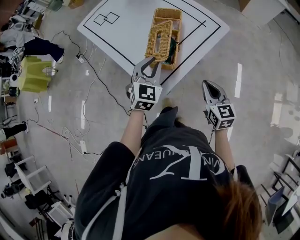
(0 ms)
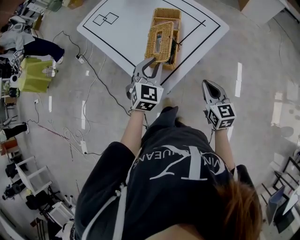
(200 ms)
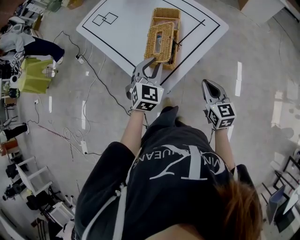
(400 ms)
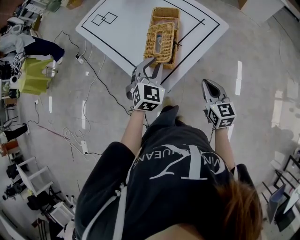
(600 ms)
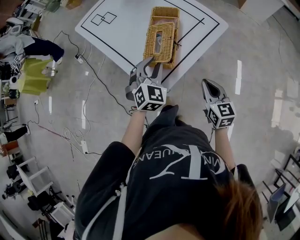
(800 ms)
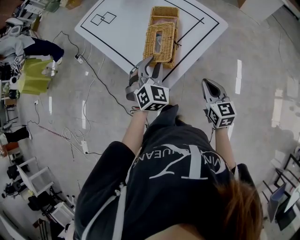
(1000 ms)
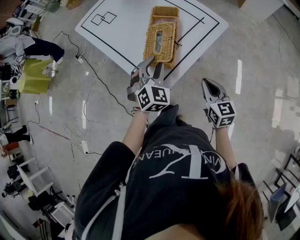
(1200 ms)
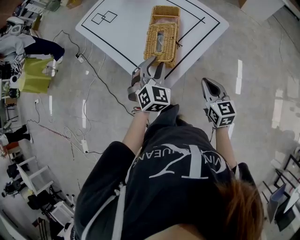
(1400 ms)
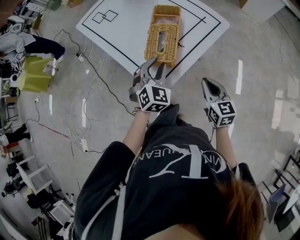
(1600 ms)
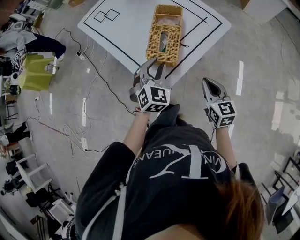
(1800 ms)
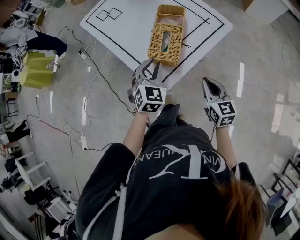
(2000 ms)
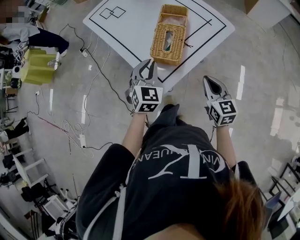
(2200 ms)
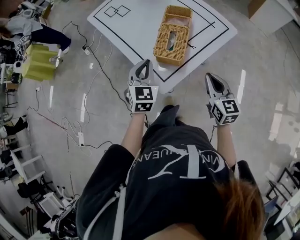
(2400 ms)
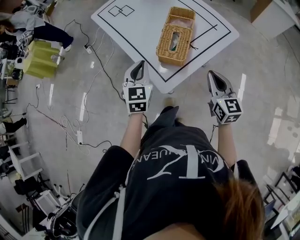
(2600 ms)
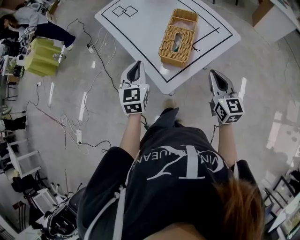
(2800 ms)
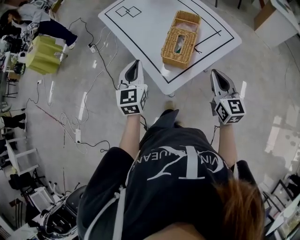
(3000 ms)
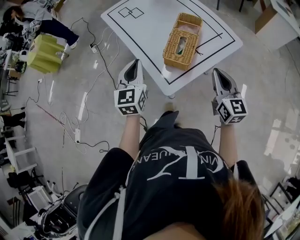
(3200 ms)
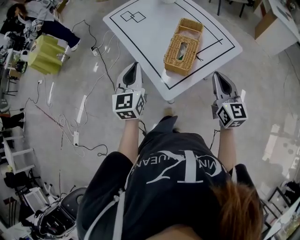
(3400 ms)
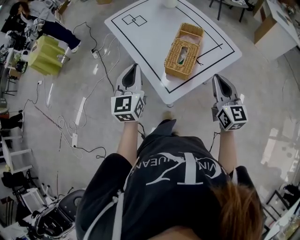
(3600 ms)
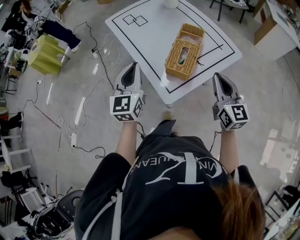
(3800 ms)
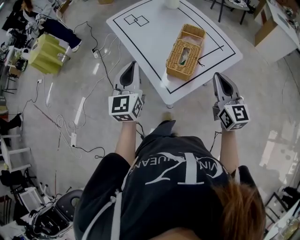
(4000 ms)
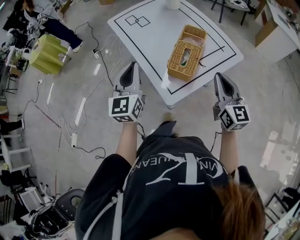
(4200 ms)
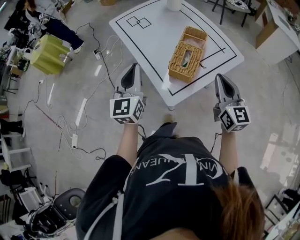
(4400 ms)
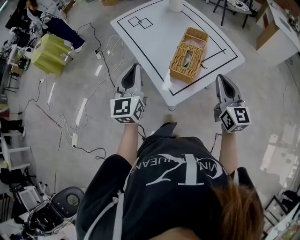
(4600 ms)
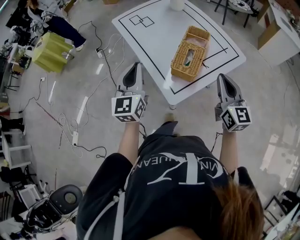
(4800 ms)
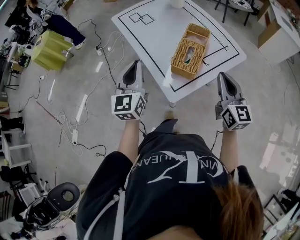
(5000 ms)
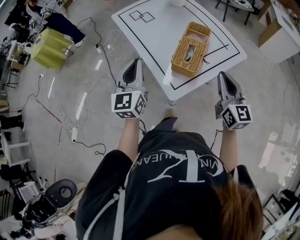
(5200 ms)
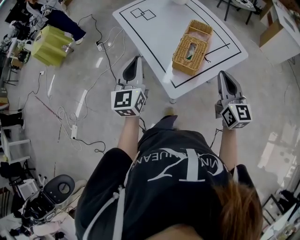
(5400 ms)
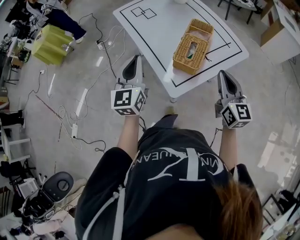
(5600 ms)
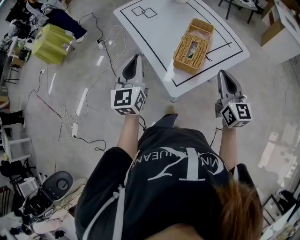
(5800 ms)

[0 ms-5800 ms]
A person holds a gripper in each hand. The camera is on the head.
0 ms to 1400 ms: There are only small adjustments of the grippers.
1400 ms to 2800 ms: The right gripper heads upward, covering some 5 cm. The left gripper shifts roughly 15 cm to the left, rotates about 40 degrees, and closes up.
2800 ms to 4400 ms: Both grippers move upward, roughly 10 cm.
4400 ms to 5800 ms: There are only small adjustments of the grippers.

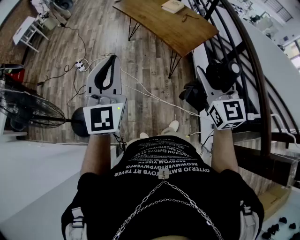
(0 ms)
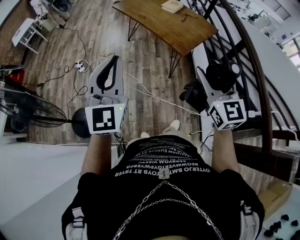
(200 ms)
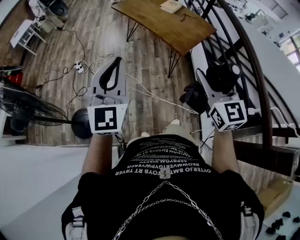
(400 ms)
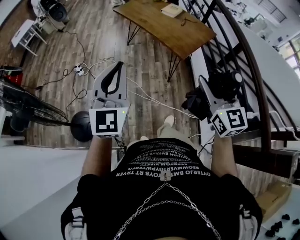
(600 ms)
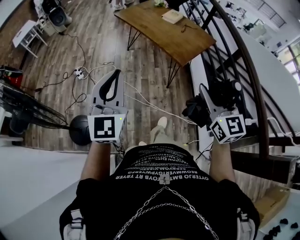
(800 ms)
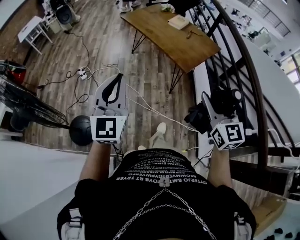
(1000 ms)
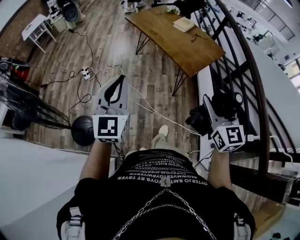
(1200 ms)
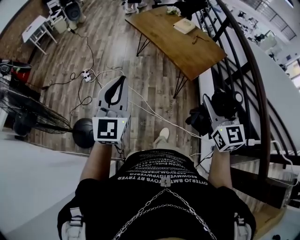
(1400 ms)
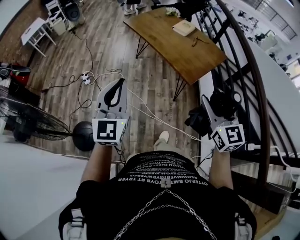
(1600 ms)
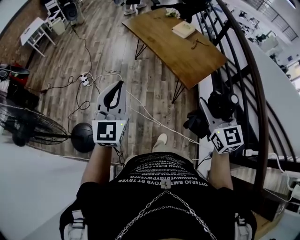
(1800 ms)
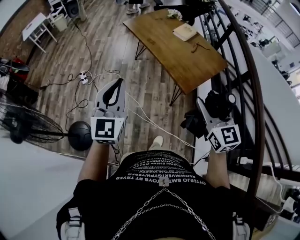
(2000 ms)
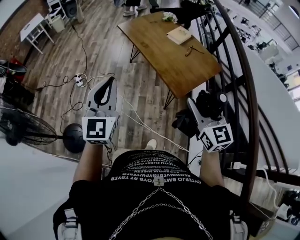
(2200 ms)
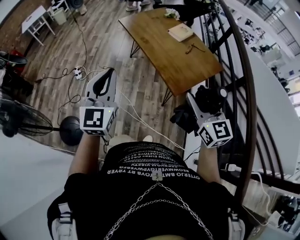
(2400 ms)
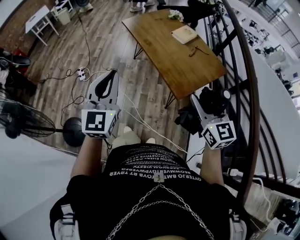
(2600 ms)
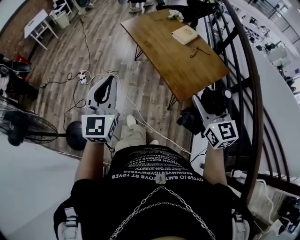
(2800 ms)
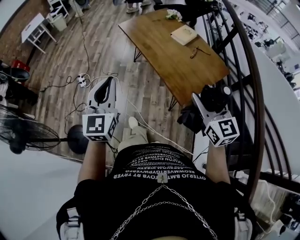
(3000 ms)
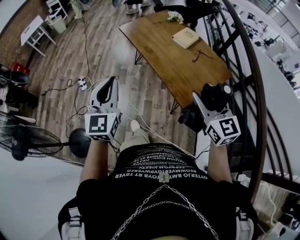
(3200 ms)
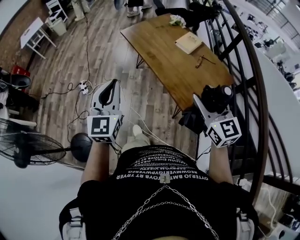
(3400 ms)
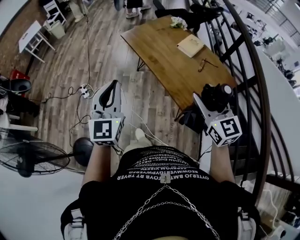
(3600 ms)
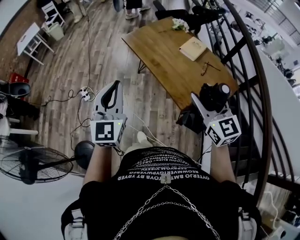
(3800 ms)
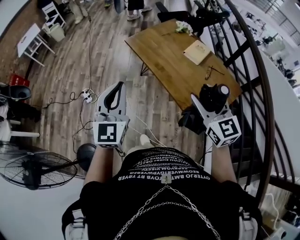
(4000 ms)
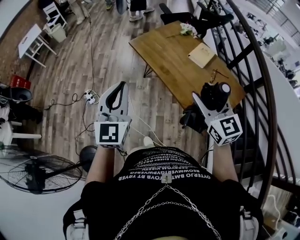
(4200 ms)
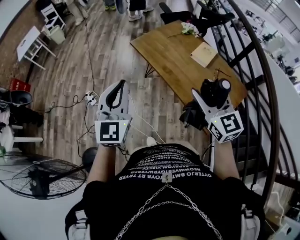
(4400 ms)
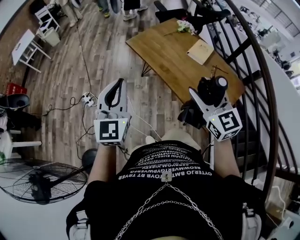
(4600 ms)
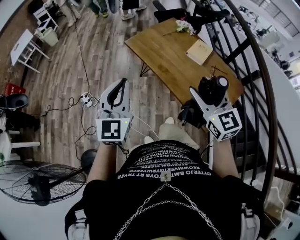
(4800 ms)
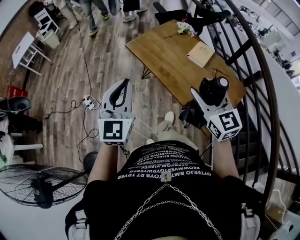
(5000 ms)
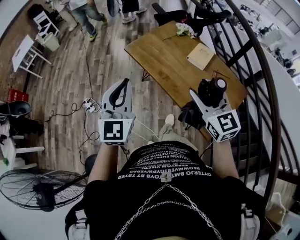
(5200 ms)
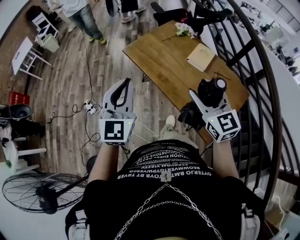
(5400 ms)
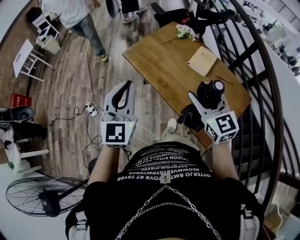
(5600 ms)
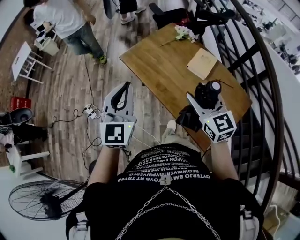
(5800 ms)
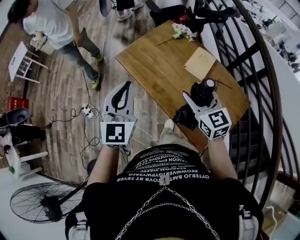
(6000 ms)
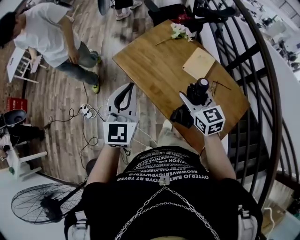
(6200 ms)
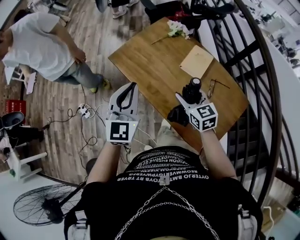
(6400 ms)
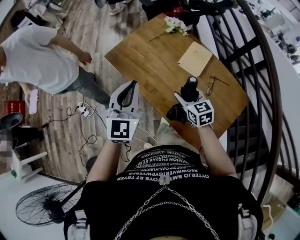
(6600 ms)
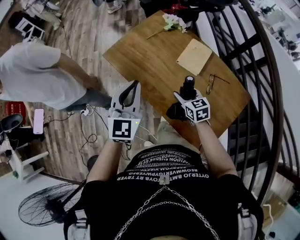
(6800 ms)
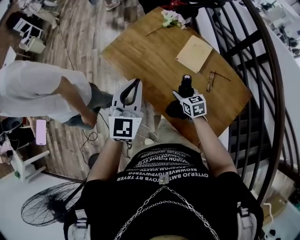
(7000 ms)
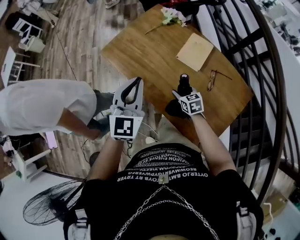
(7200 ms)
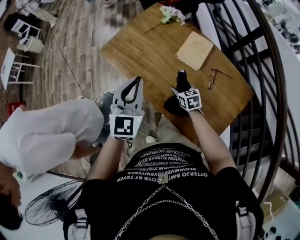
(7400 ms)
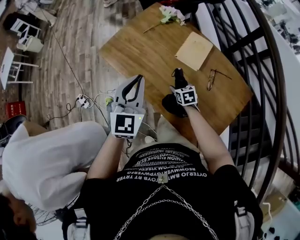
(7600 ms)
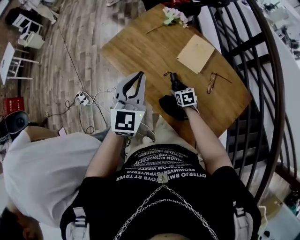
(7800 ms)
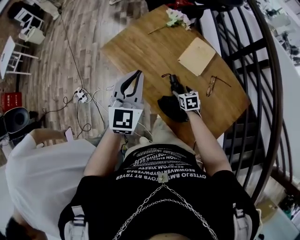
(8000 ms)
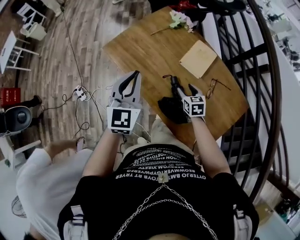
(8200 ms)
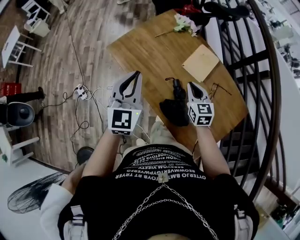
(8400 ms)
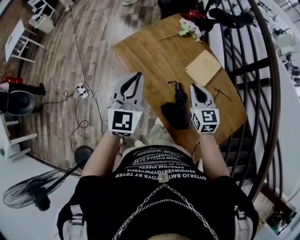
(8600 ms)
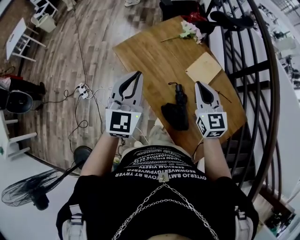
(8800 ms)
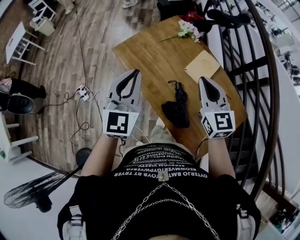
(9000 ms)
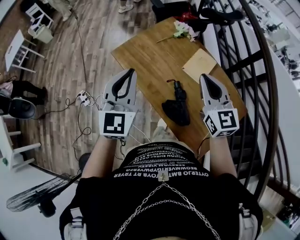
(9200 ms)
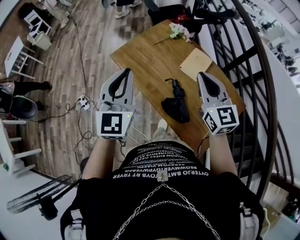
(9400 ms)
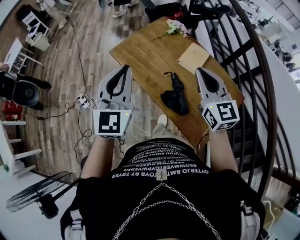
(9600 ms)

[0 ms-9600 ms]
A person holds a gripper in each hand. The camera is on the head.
0 ms to 1600 ms: The right gripper is displaced forward by some 5 cm, while the left gripper is displaced forward and downward by about 10 cm.
1600 ms to 3200 ms: The grippers both shift forward by about 20 cm.
3200 ms to 4800 ms: The right gripper goes some 25 cm forward and to the left. The left gripper moves forward, roughly 20 cm.
4800 ms to 6400 ms: The left gripper moves forward and to the right, about 25 cm. The right gripper shifts roughly 30 cm forward, downward and to the right, and swivels approximately 20 degrees.
6400 ms to 8000 ms: The right gripper heads downward, covering approximately 25 cm, and changes its angle by roughly 30 degrees; the left gripper is displaced forward by roughly 5 cm.
8000 ms to 9600 ms: The right gripper moves upward, about 40 cm, points its fingers some 50 degrees further upward, and closes its fingers; the left gripper moves upward, backward and to the left, roughly 15 cm.

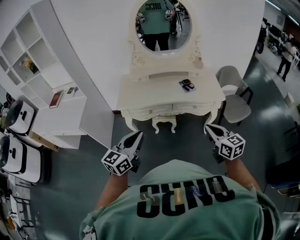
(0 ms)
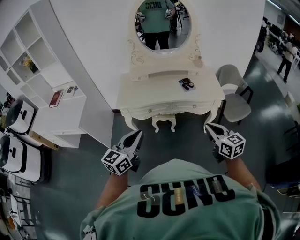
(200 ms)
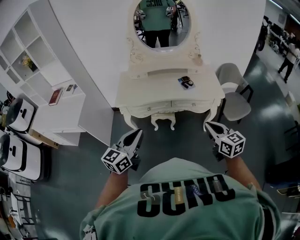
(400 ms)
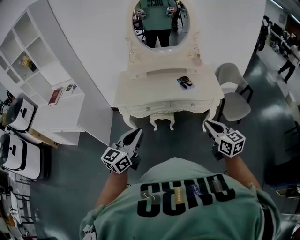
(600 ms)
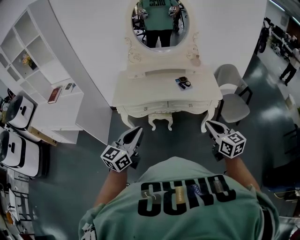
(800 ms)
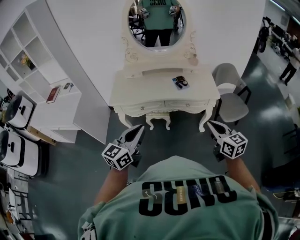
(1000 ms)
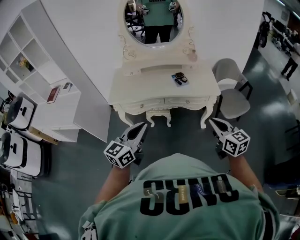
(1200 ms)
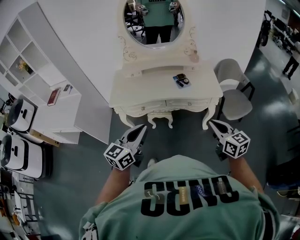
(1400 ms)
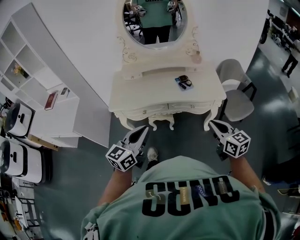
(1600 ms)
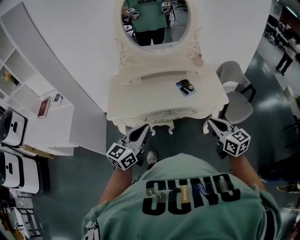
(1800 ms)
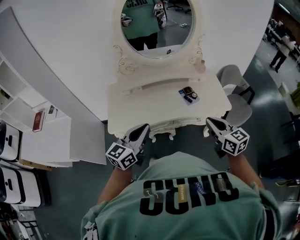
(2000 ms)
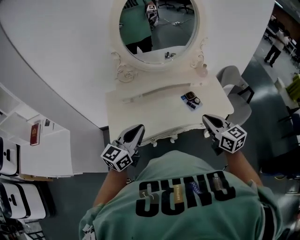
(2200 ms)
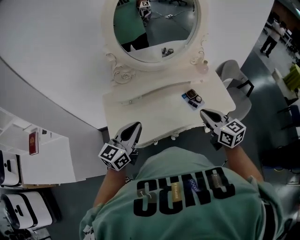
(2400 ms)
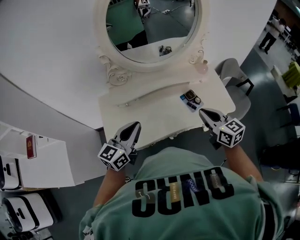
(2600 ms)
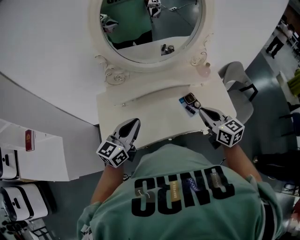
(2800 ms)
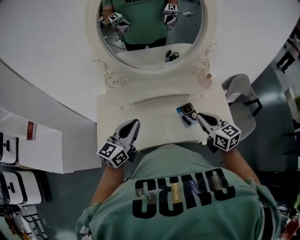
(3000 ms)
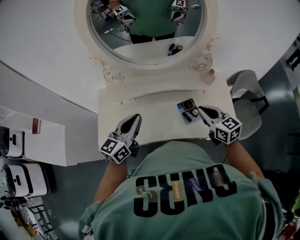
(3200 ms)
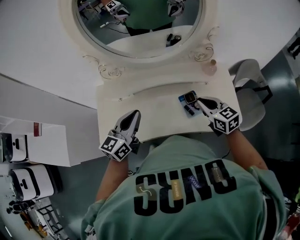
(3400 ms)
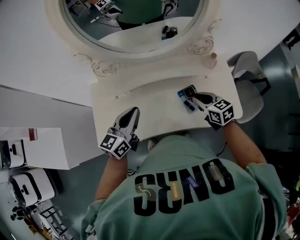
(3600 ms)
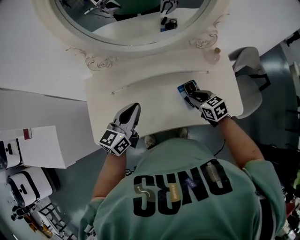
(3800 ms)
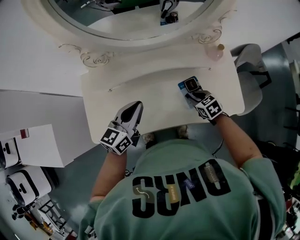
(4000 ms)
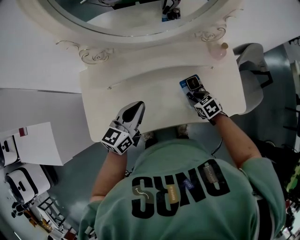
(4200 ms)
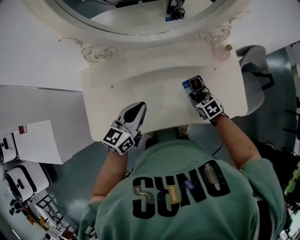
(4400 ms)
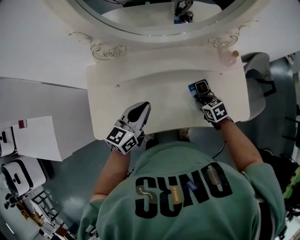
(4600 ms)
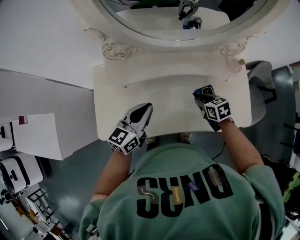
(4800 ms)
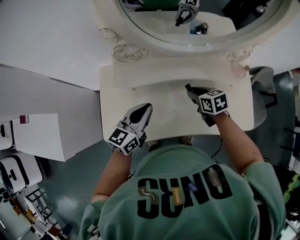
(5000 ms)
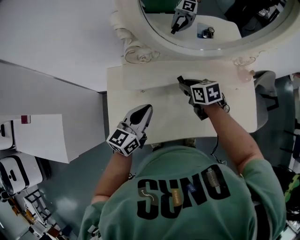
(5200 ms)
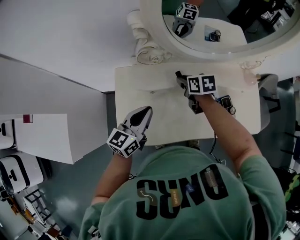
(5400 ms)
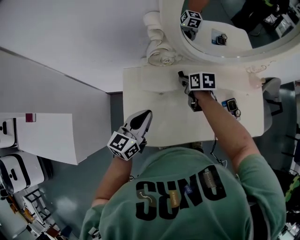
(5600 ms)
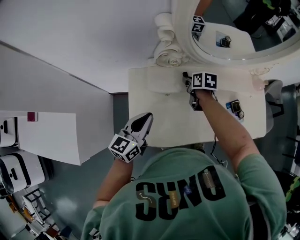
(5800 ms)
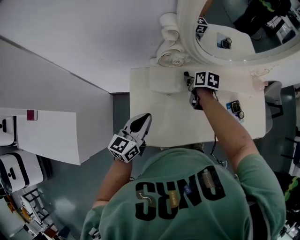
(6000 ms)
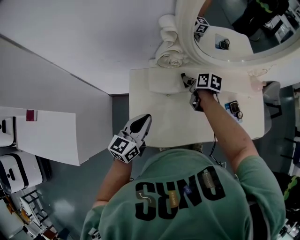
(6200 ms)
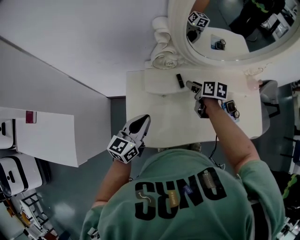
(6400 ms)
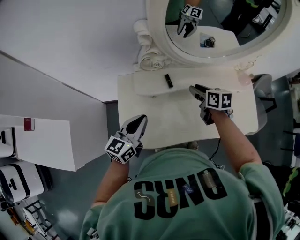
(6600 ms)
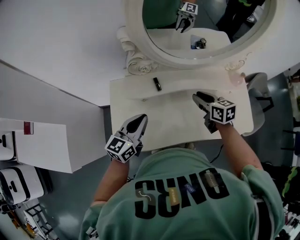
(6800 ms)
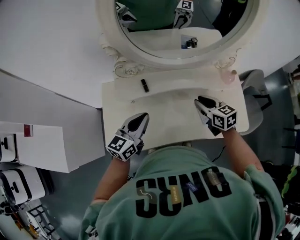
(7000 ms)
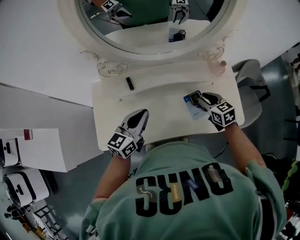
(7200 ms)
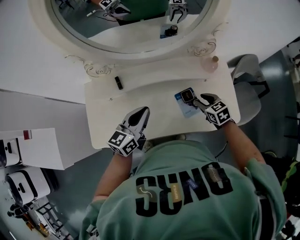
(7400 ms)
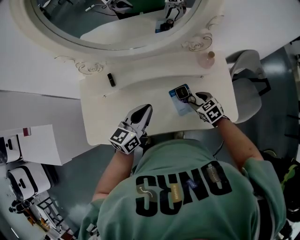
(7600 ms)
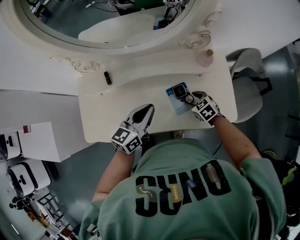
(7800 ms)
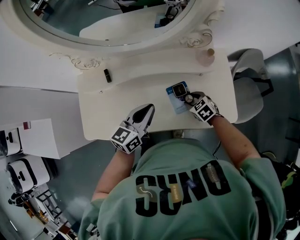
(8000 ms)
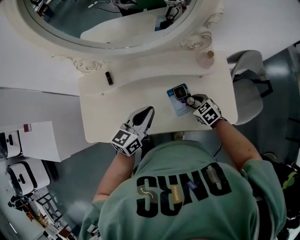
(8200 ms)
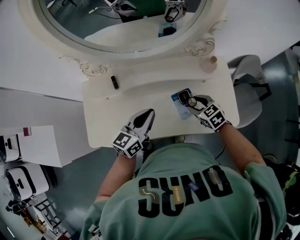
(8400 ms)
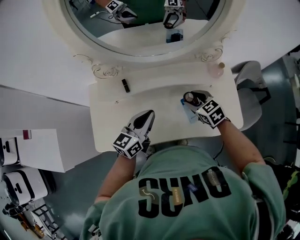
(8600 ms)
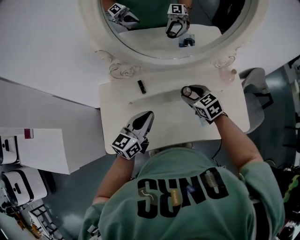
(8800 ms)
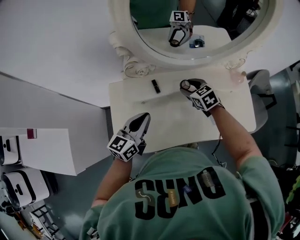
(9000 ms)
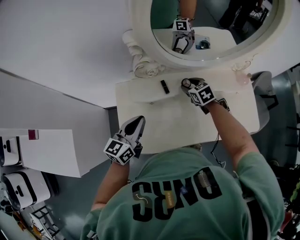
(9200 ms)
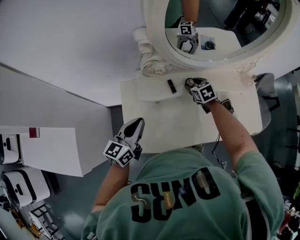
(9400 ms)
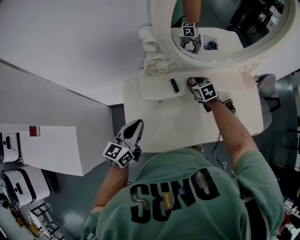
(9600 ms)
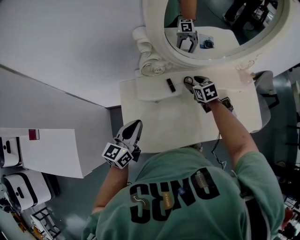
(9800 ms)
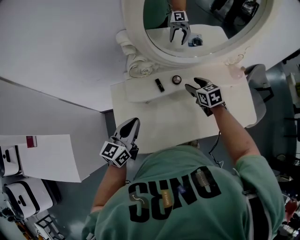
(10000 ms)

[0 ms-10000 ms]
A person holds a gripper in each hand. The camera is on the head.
0 ms to 1400 ms: The right gripper goes about 10 cm to the right; the left gripper shifts approximately 10 cm to the right and forward.
1400 ms to 2800 ms: Both grippers are carried forward and to the left, about 40 cm.
2800 ms to 4200 ms: The right gripper is displaced downward by approximately 30 cm, and tips its fingers downward by some 40 degrees; the left gripper is displaced downward, forward and to the right by approximately 15 cm.
4200 ms to 5800 ms: The left gripper goes about 25 cm to the left. The right gripper is displaced to the left and forward by approximately 40 cm, and changes its angle by roughly 40 degrees.
5800 ms to 7200 ms: The left gripper moves to the right, roughly 25 cm, while the right gripper heads to the right and backward, covering roughly 35 cm, and changes its angle by some 30 degrees.
7200 ms to 8600 ms: The right gripper goes downward and returns, some 15 cm each way. The left gripper moves approximately 15 cm to the right and comes back.
8600 ms to 10000 ms: The left gripper goes approximately 25 cm to the left; the right gripper moves to the left and forward, roughly 15 cm.
